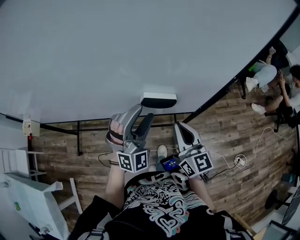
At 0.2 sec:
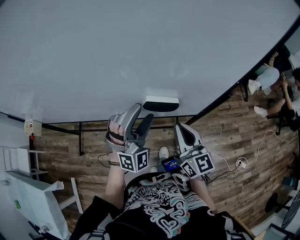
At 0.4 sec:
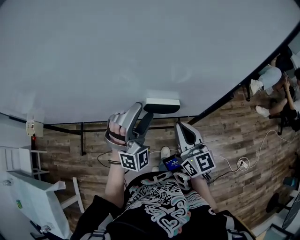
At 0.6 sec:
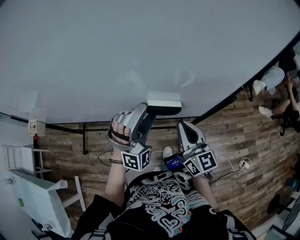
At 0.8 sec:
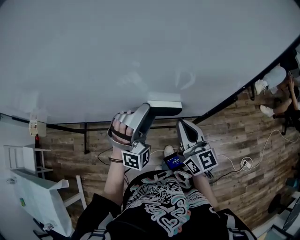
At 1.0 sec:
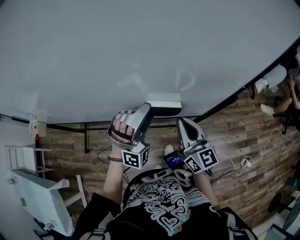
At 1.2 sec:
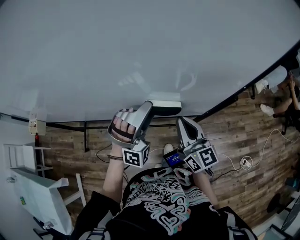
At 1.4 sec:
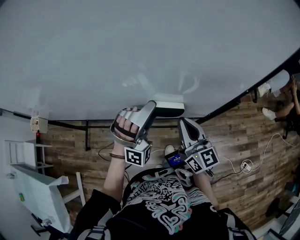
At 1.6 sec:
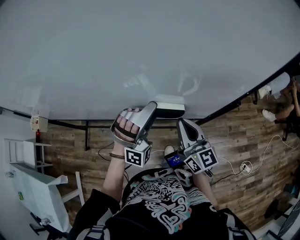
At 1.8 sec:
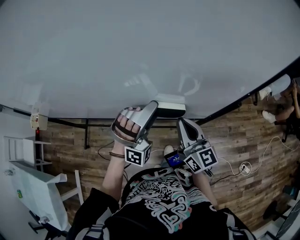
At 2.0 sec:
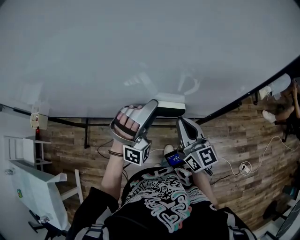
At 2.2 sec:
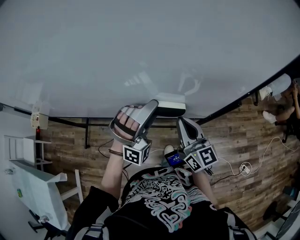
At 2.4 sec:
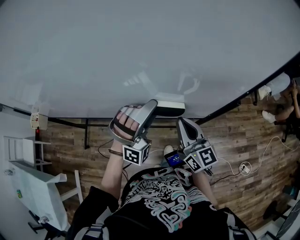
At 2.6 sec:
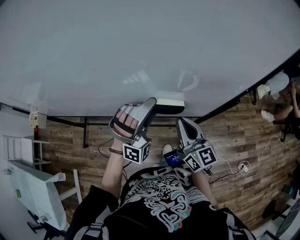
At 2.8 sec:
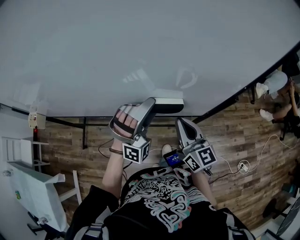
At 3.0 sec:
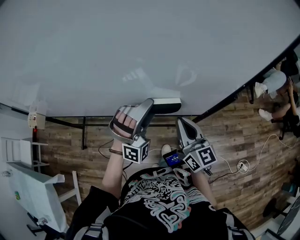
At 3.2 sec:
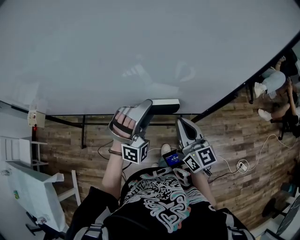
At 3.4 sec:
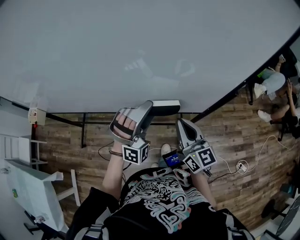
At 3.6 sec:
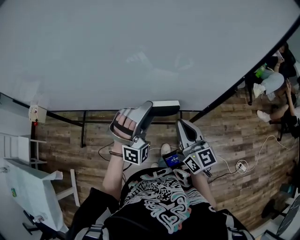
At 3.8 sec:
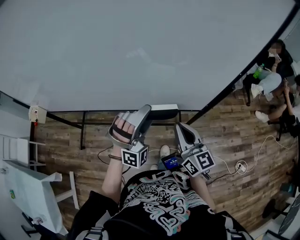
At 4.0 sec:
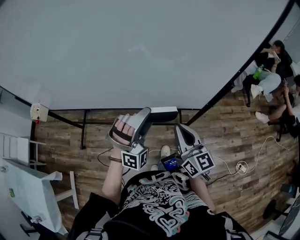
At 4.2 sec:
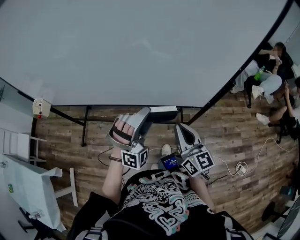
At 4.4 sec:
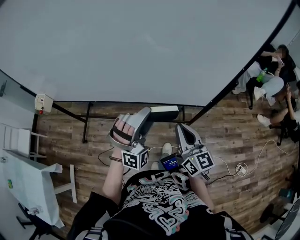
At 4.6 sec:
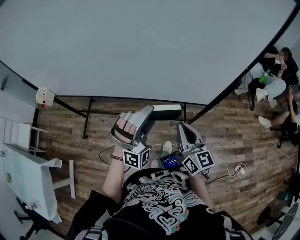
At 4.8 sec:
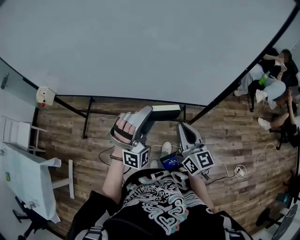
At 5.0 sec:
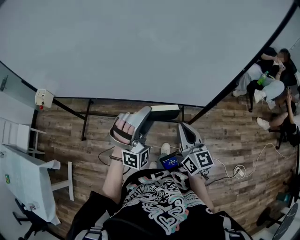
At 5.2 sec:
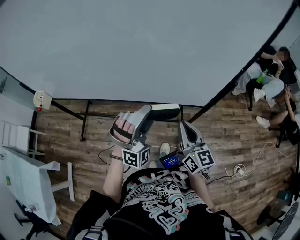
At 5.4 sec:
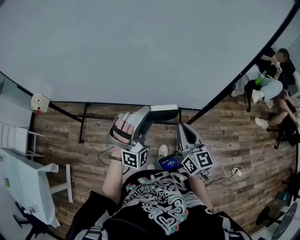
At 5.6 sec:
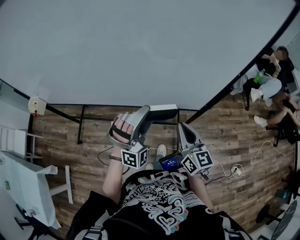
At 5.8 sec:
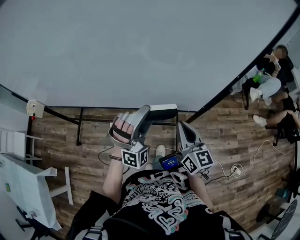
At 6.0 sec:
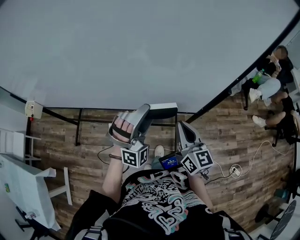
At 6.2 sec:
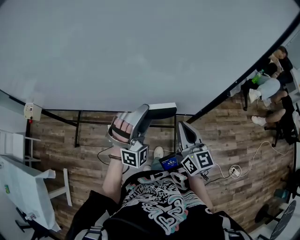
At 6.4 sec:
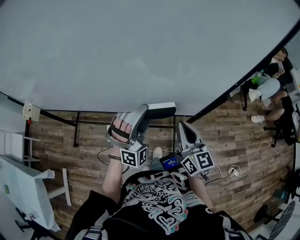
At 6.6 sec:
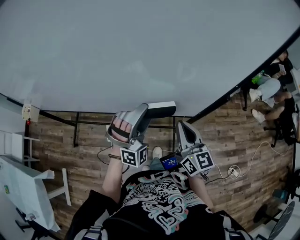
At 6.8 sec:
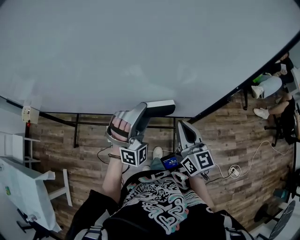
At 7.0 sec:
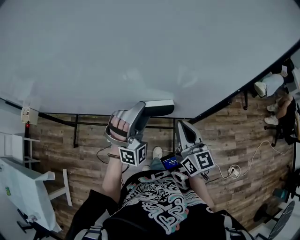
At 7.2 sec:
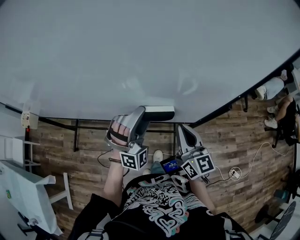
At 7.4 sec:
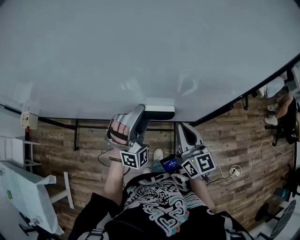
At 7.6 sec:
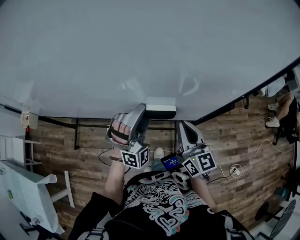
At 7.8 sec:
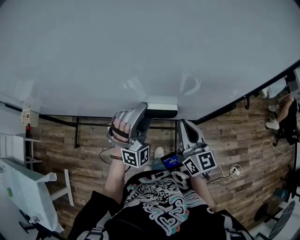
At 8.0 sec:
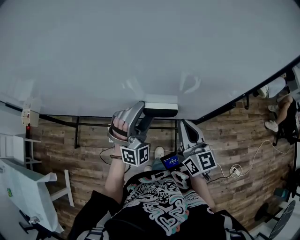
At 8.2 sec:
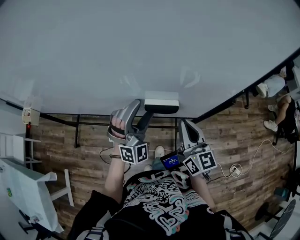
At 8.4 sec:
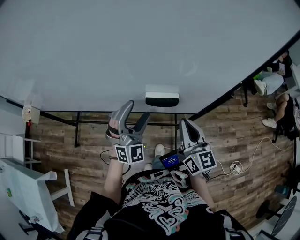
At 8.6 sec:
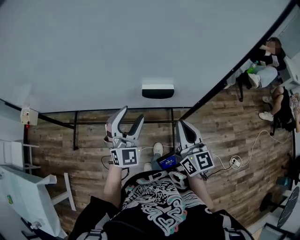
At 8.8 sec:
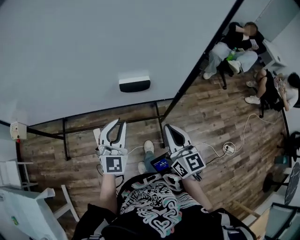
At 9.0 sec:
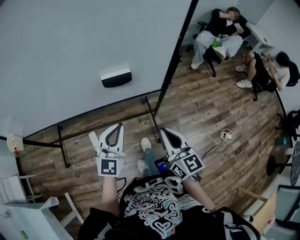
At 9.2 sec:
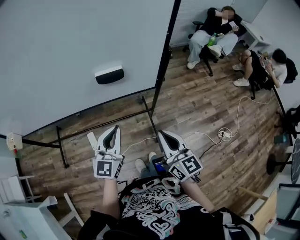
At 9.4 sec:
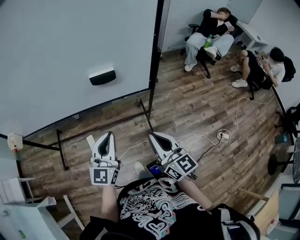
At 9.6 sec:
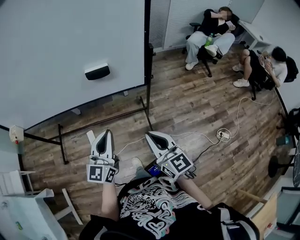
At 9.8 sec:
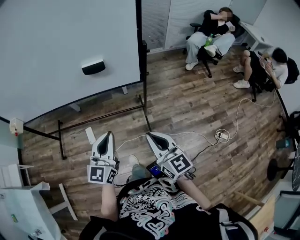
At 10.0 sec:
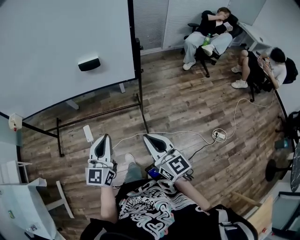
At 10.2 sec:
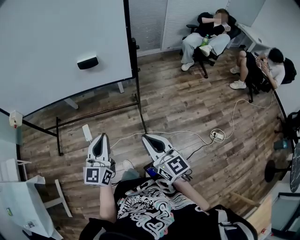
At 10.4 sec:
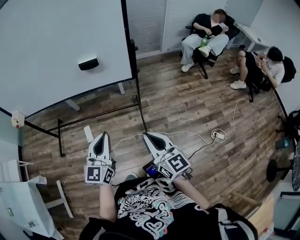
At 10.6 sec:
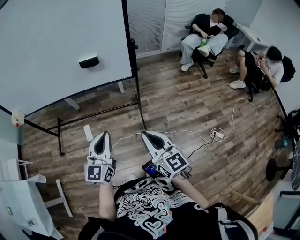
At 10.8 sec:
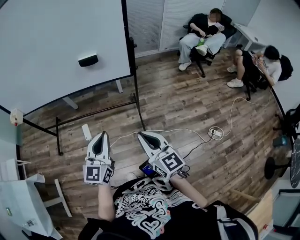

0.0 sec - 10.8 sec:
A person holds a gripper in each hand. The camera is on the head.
0.0 sec - 1.6 sec: The left gripper changes its angle by approximately 30 degrees.
1.6 sec - 3.0 sec: There are only small adjustments of the grippers.
3.0 sec - 4.6 sec: The grippers both shift backward and to the left by about 15 cm.
4.6 sec - 6.2 sec: The grippers both shift forward and to the right by about 10 cm.
6.2 sec - 7.8 sec: The left gripper goes roughly 5 cm forward.
7.8 sec - 9.2 sec: The two grippers go roughly 20 cm backward. The left gripper rotates around the line of its fingers by approximately 70 degrees, counterclockwise from behind, and closes.
9.2 sec - 10.8 sec: The grippers both shift backward by roughly 20 cm.

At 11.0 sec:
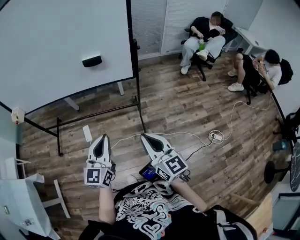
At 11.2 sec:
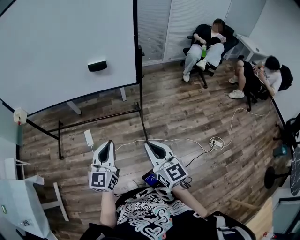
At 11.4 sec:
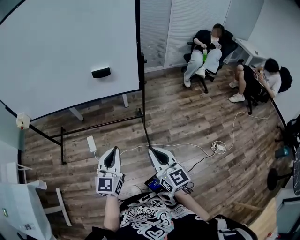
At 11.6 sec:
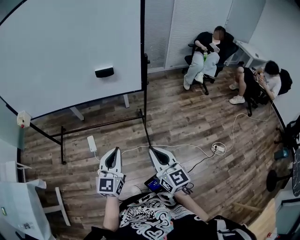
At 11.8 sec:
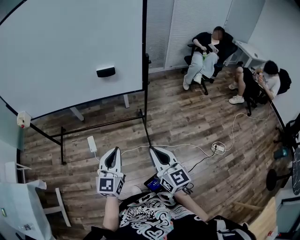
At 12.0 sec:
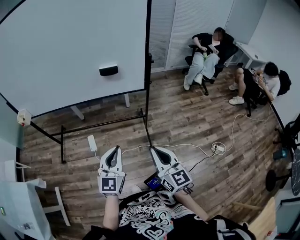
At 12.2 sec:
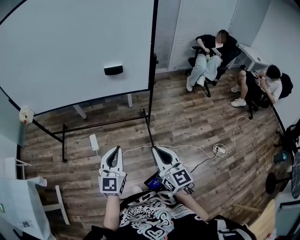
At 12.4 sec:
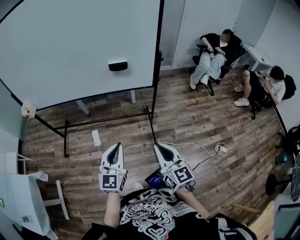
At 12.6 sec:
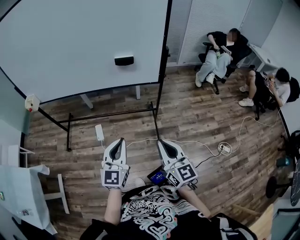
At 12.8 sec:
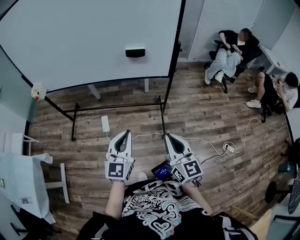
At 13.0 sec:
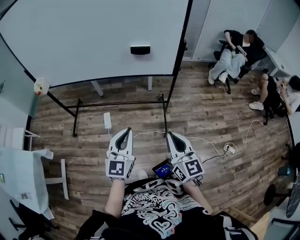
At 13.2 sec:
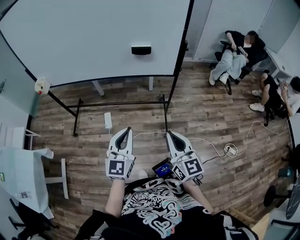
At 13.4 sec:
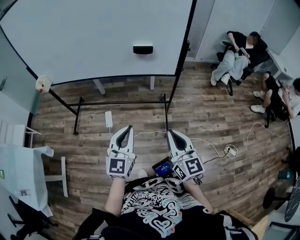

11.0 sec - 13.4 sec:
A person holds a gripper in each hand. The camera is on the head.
11.0 sec - 12.2 sec: The two grippers go roughly 5 cm to the left.
12.2 sec - 13.4 sec: The grippers make only small movements.

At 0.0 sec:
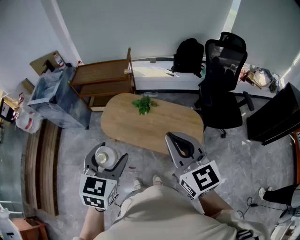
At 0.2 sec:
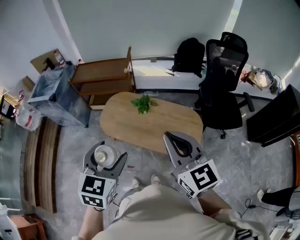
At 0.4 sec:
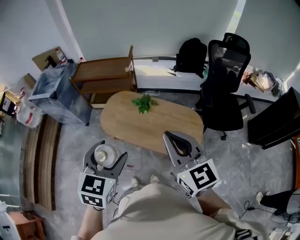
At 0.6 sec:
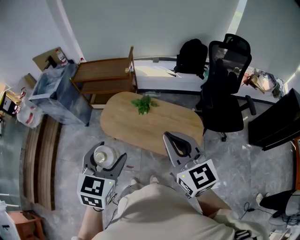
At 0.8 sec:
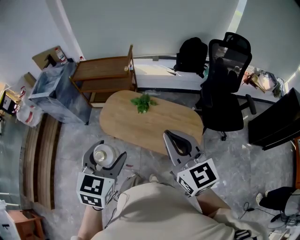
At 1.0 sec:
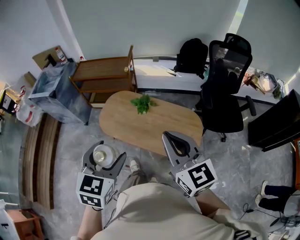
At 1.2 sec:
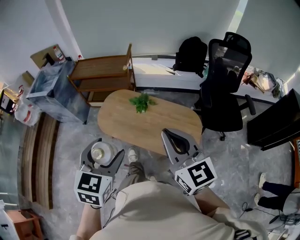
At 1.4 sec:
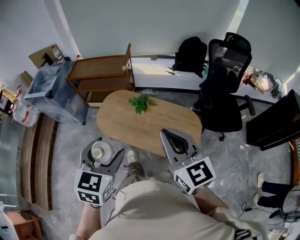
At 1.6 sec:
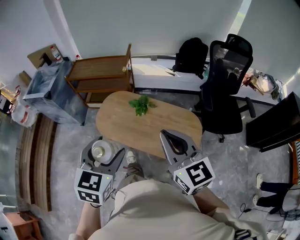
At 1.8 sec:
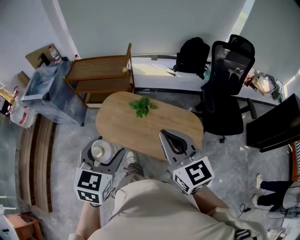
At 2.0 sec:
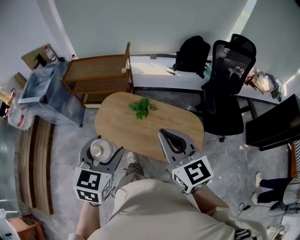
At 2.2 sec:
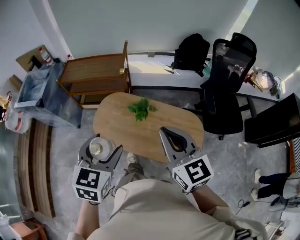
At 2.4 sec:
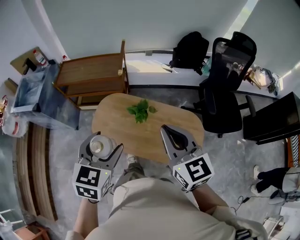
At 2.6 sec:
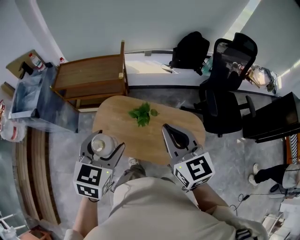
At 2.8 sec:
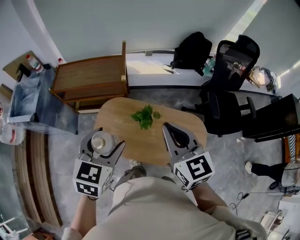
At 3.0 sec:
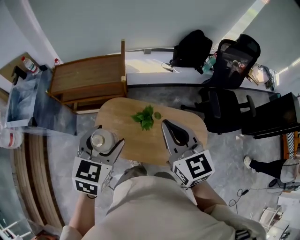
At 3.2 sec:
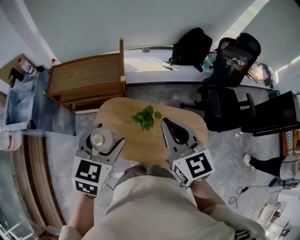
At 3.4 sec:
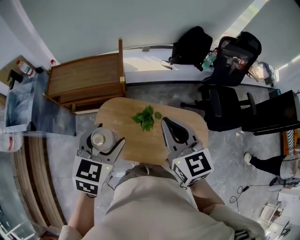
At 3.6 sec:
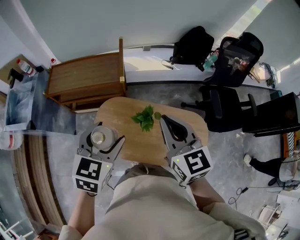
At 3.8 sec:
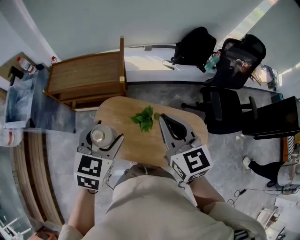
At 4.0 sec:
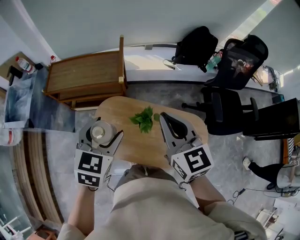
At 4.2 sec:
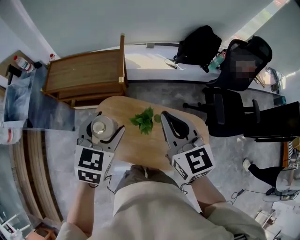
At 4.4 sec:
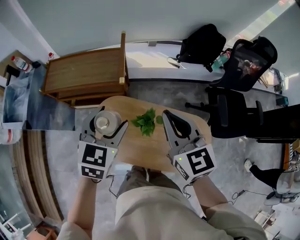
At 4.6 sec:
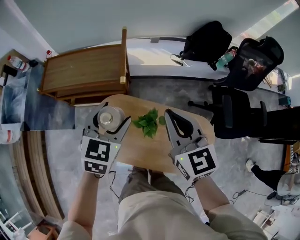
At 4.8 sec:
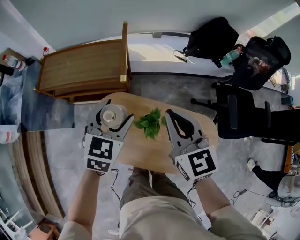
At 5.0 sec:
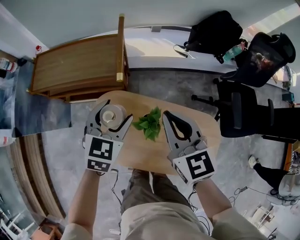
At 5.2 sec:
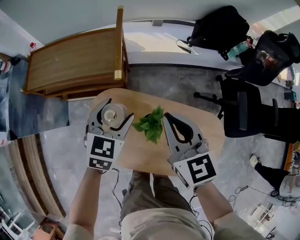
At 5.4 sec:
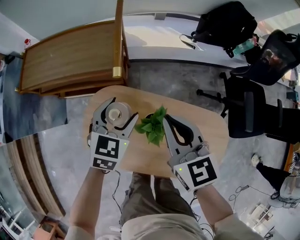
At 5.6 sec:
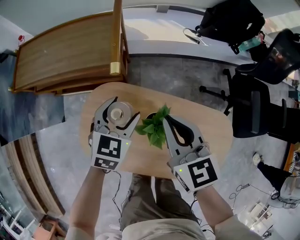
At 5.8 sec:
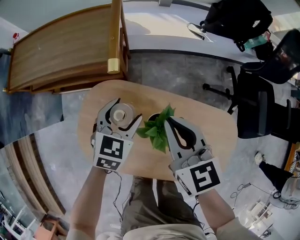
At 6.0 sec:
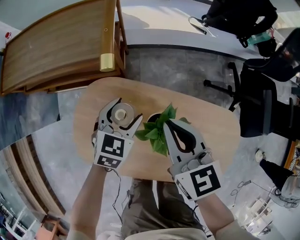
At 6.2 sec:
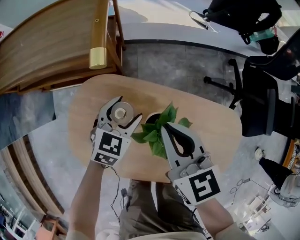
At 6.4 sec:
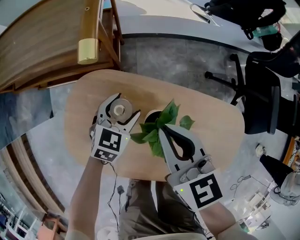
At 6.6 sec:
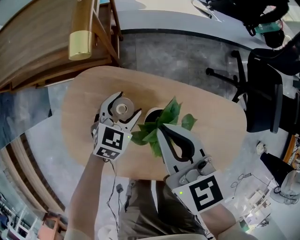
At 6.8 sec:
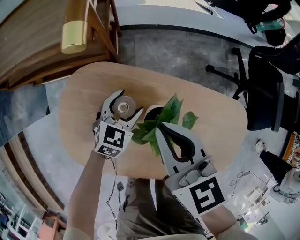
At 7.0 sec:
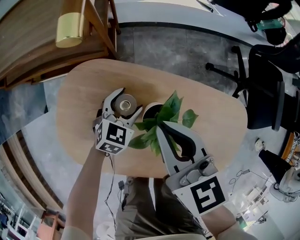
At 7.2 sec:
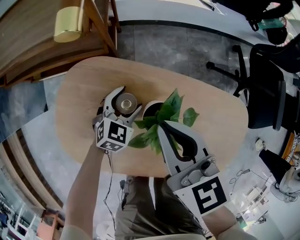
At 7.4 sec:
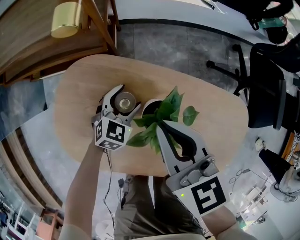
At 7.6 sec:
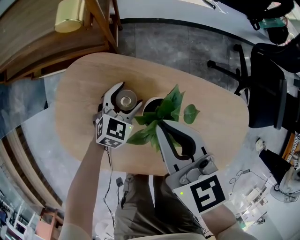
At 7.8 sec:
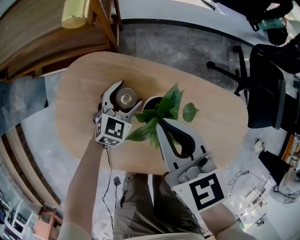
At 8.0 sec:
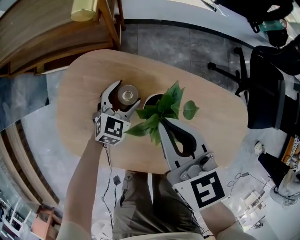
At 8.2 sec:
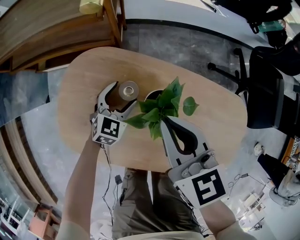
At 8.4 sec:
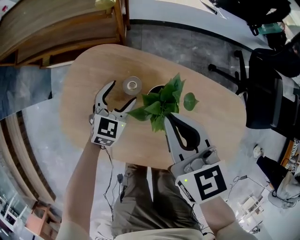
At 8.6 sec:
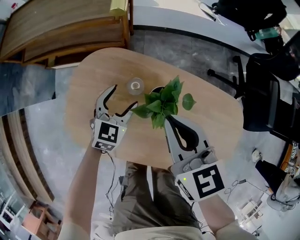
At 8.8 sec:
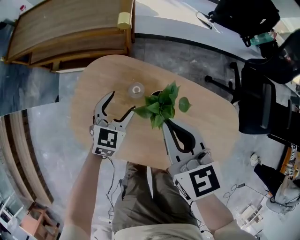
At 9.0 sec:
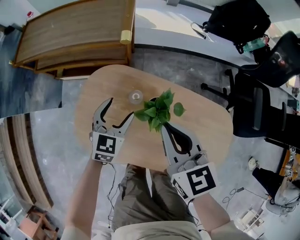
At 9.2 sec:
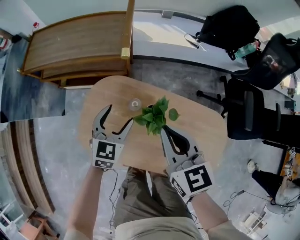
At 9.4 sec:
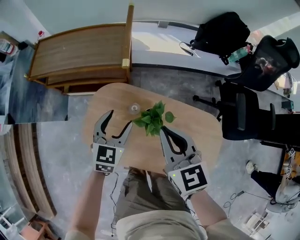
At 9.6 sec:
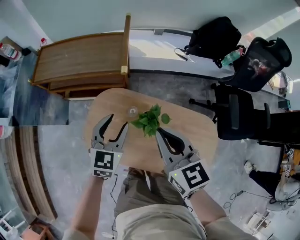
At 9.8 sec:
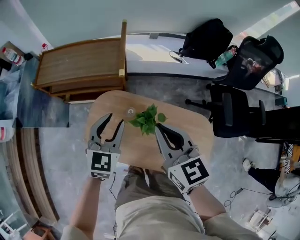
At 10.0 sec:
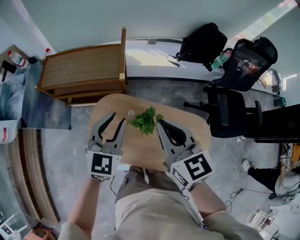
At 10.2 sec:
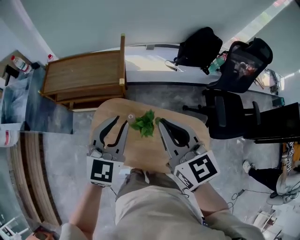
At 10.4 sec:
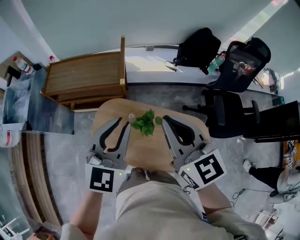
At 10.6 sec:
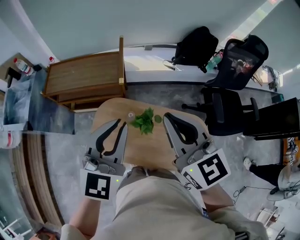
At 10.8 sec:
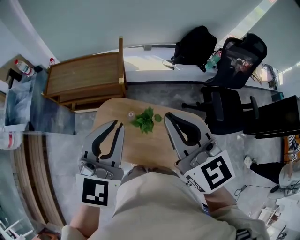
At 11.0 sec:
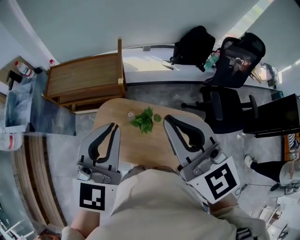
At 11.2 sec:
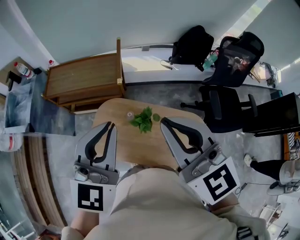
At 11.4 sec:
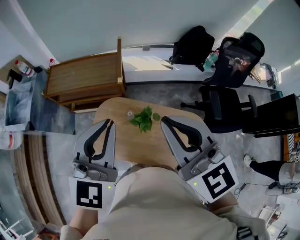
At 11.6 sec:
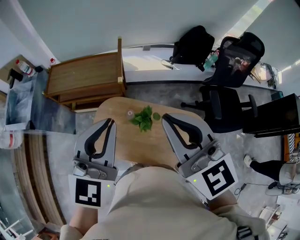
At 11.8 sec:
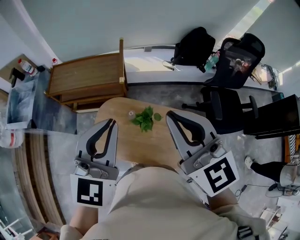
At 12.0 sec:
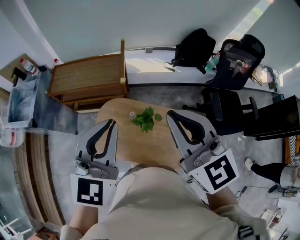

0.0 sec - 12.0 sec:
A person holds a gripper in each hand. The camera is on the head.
0.0 sec - 1.6 sec: The two grippers go roughly 5 cm forward.
1.6 sec - 3.0 sec: Both grippers travel together forward, roughly 30 cm.
3.0 sec - 4.4 sec: Both grippers move forward, some 15 cm.
4.4 sec - 6.0 sec: Both grippers move downward, about 40 cm.
6.0 sec - 7.6 sec: The right gripper is displaced downward by some 5 cm; the left gripper heads downward, covering roughly 15 cm.
7.6 sec - 9.0 sec: The right gripper travels upward and backward by roughly 15 cm. The left gripper travels upward by some 20 cm.
9.0 sec - 10.4 sec: Both grippers travel together upward, about 40 cm. The left gripper turns by some 20 degrees, and closes.
10.4 sec - 12.0 sec: Both grippers move upward and backward, approximately 10 cm.
